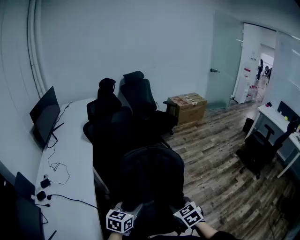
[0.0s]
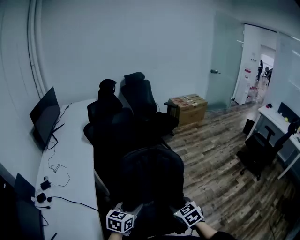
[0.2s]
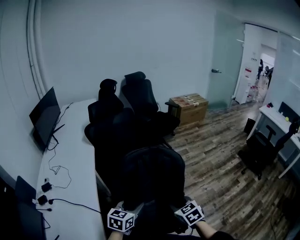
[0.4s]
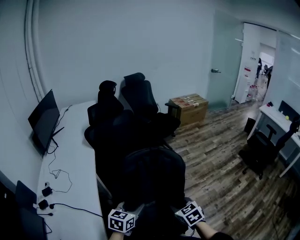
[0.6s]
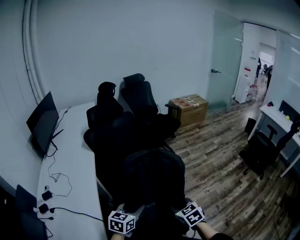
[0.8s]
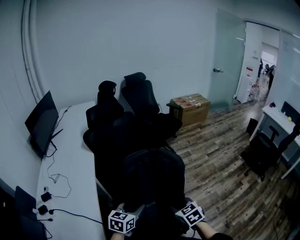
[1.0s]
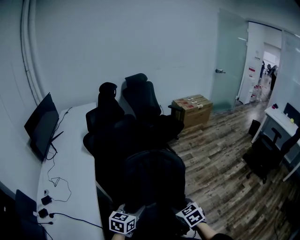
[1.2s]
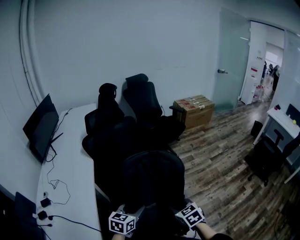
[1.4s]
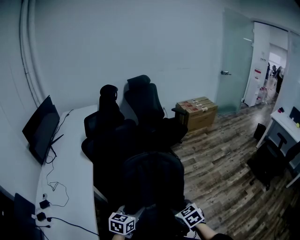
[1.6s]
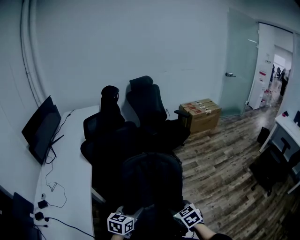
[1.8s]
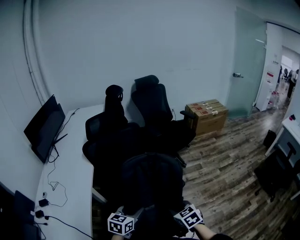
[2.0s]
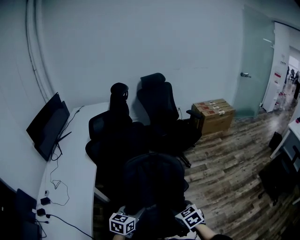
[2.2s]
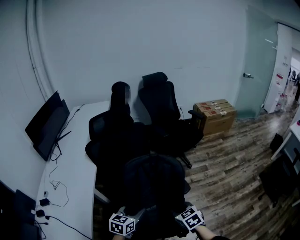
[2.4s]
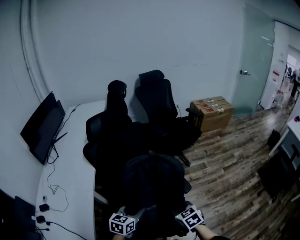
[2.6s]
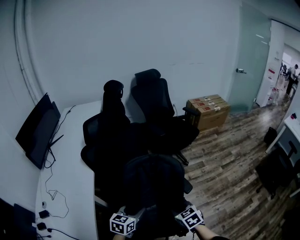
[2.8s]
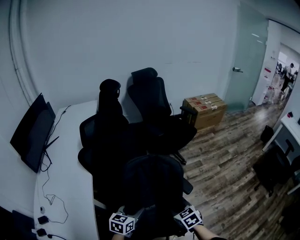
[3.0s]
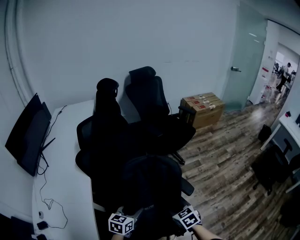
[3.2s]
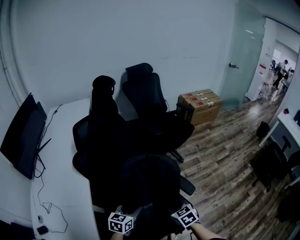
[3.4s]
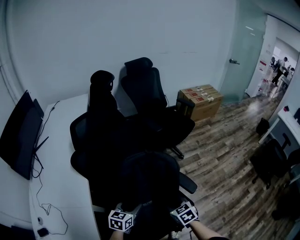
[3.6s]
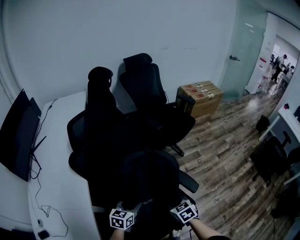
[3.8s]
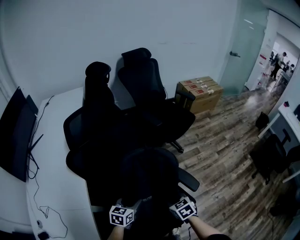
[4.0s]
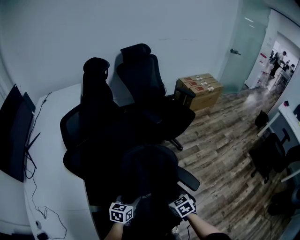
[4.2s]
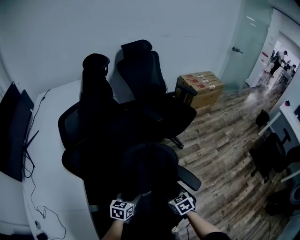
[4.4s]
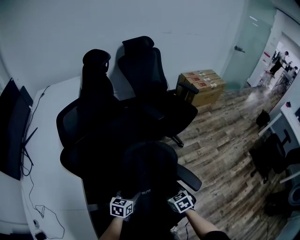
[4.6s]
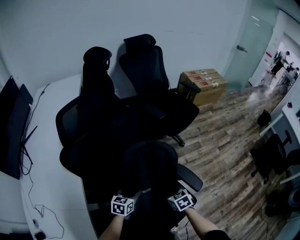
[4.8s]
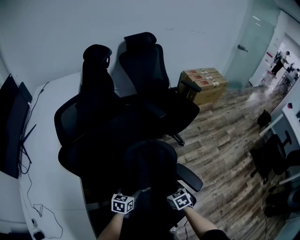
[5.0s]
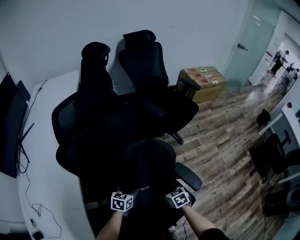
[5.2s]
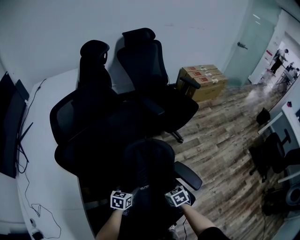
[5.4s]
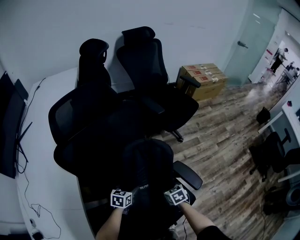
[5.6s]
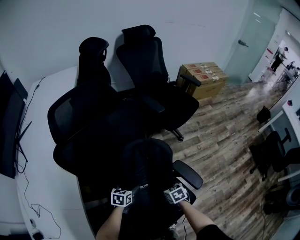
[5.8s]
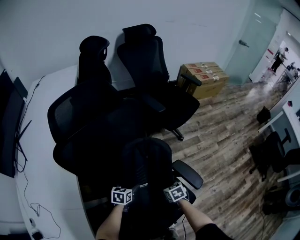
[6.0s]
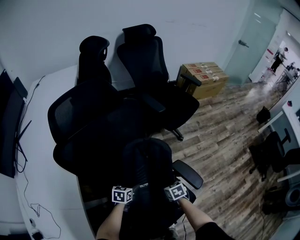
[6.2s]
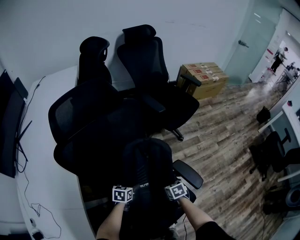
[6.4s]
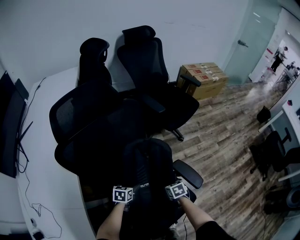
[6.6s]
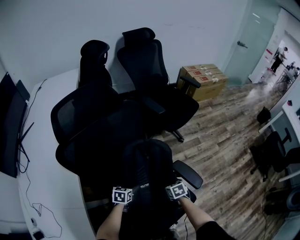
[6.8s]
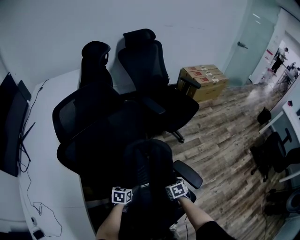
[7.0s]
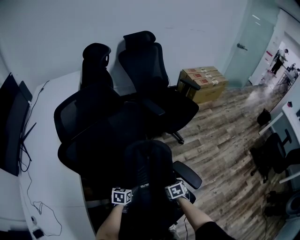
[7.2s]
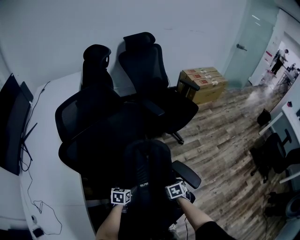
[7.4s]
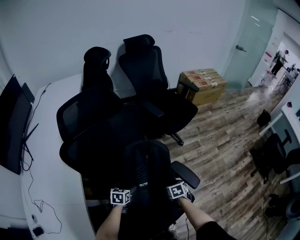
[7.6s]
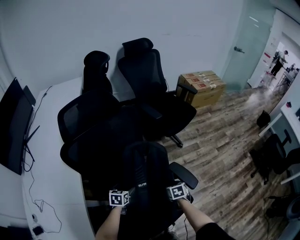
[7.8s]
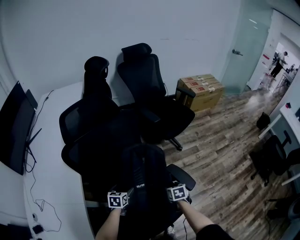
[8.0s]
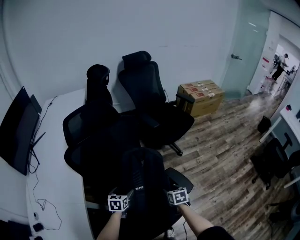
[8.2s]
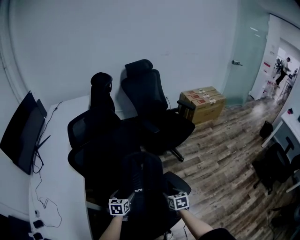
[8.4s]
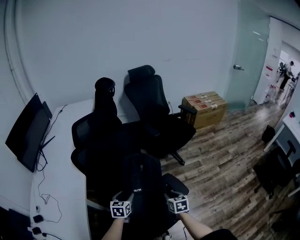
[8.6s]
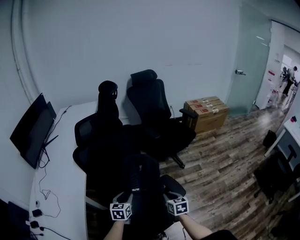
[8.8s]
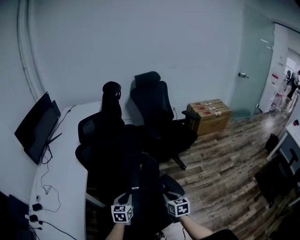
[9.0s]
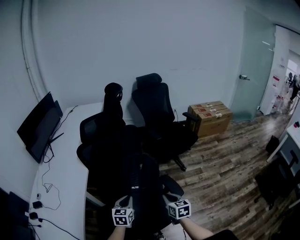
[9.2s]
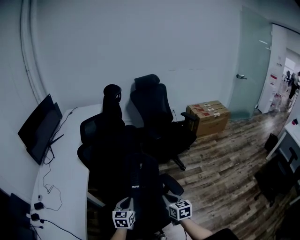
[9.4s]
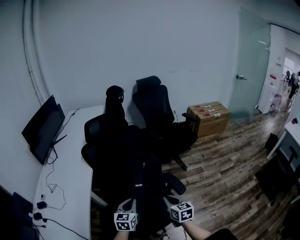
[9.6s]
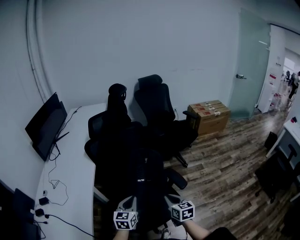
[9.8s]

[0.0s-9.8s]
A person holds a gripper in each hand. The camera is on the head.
0.0s to 1.4s: The grippers both shift forward by roughly 20 cm.
1.4s to 2.8s: Both grippers move forward, about 20 cm.
2.8s to 4.2s: The two grippers go roughly 25 cm forward, downward and to the left.
4.2s to 5.6s: The grippers both shift downward and forward by approximately 15 cm.
5.6s to 7.0s: The right gripper opens up.
7.0s to 8.4s: The right gripper is displaced upward, backward and to the right by about 20 cm, while the left gripper goes some 15 cm upward and backward.
8.4s to 9.8s: Both grippers move backward and upward, some 25 cm. The left gripper swivels some 20 degrees, and closes, while the right gripper rotates about 20 degrees, and closes up.

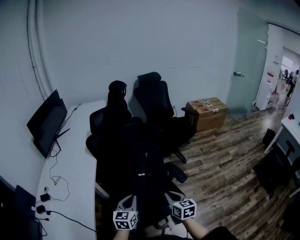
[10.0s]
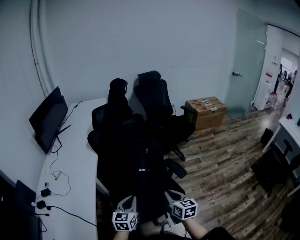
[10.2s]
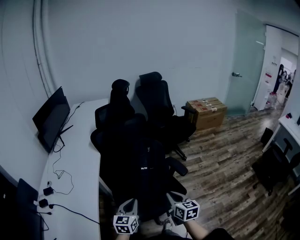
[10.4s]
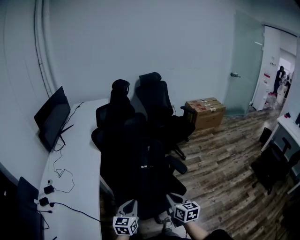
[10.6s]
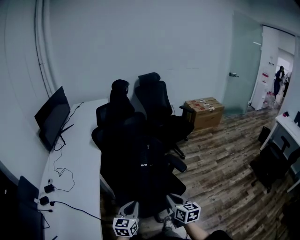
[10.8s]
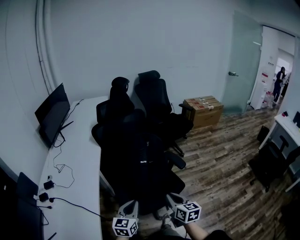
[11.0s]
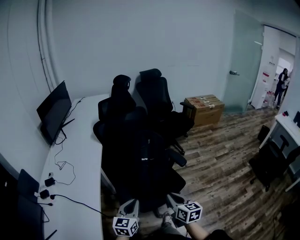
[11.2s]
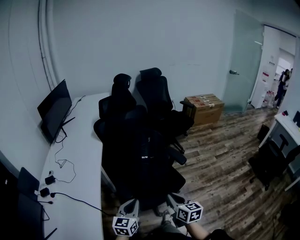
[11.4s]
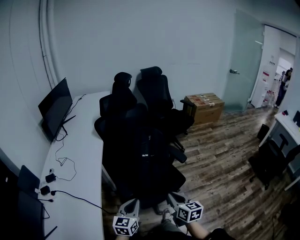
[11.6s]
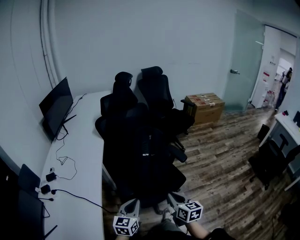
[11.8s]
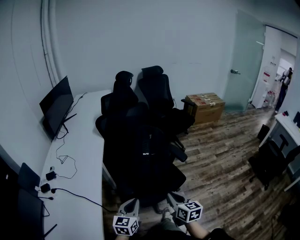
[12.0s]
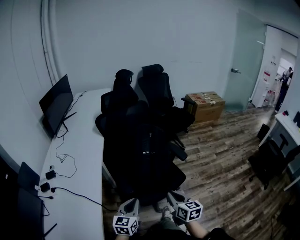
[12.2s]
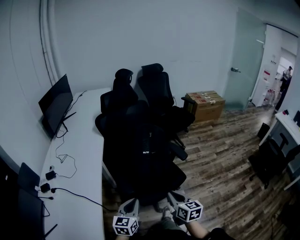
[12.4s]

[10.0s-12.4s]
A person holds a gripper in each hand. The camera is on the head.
10.0s to 11.2s: Both grippers travel together backward, some 20 cm.
11.2s to 12.4s: There are only small adjustments of the grippers.

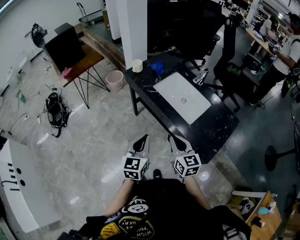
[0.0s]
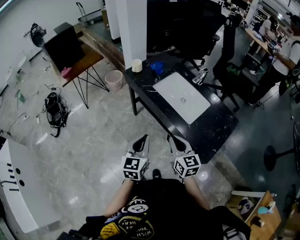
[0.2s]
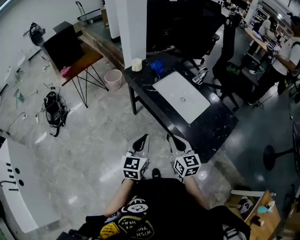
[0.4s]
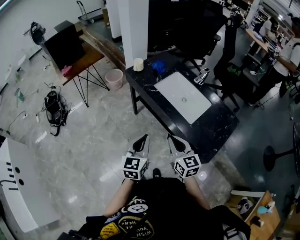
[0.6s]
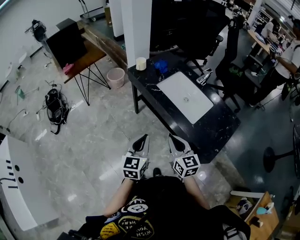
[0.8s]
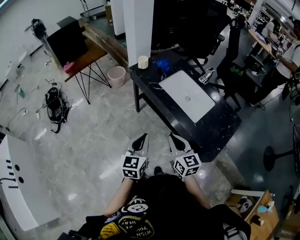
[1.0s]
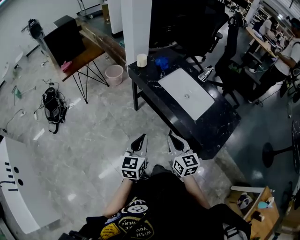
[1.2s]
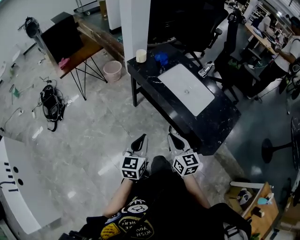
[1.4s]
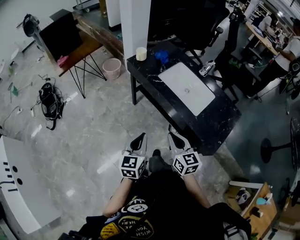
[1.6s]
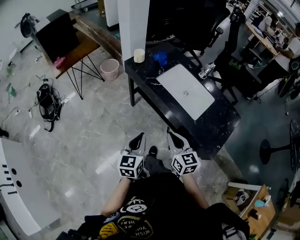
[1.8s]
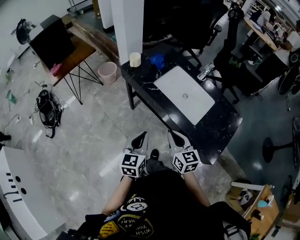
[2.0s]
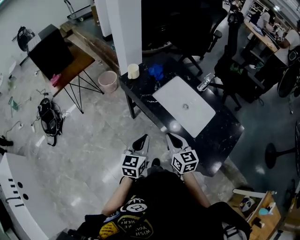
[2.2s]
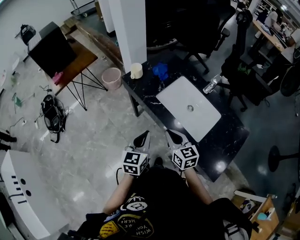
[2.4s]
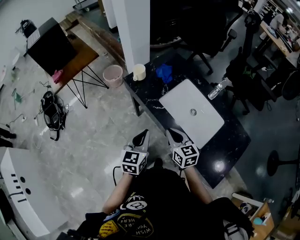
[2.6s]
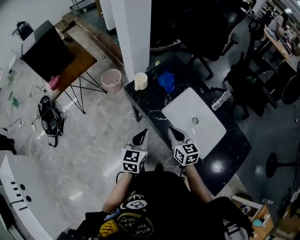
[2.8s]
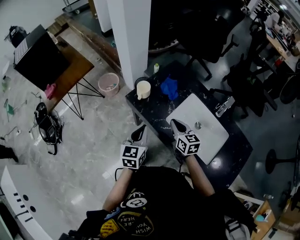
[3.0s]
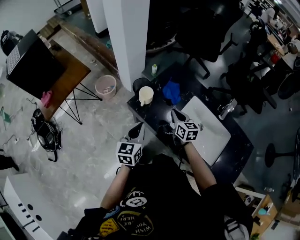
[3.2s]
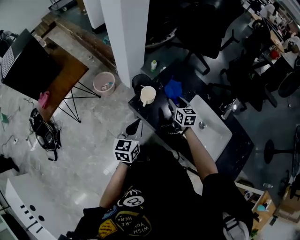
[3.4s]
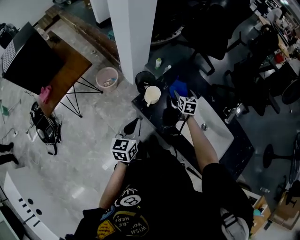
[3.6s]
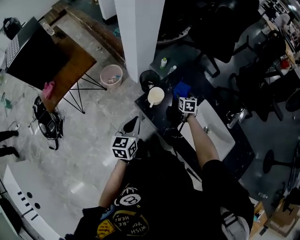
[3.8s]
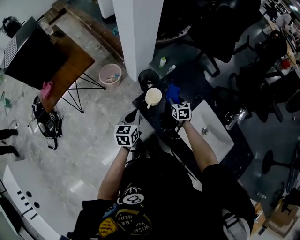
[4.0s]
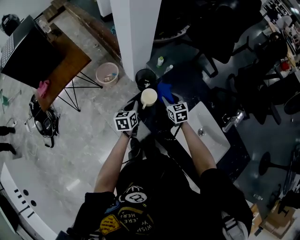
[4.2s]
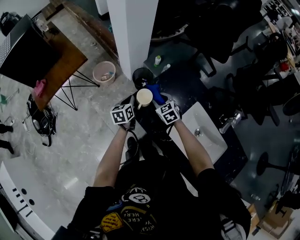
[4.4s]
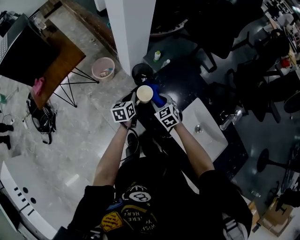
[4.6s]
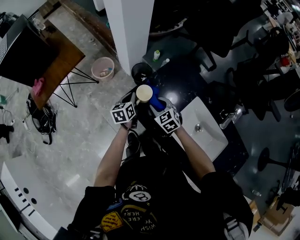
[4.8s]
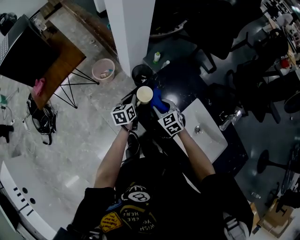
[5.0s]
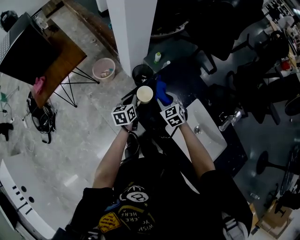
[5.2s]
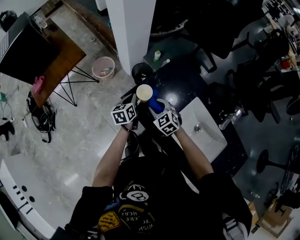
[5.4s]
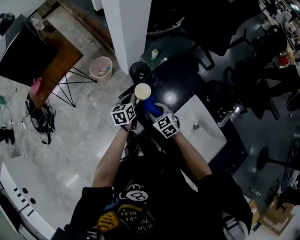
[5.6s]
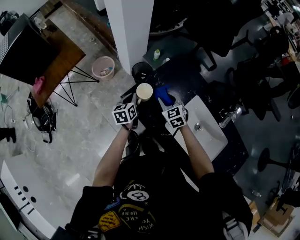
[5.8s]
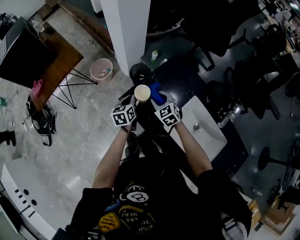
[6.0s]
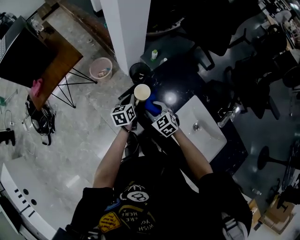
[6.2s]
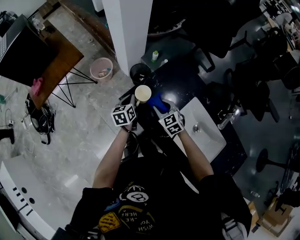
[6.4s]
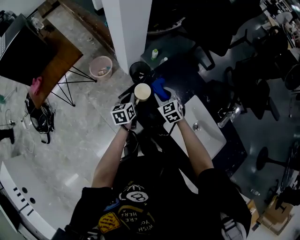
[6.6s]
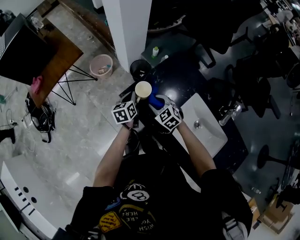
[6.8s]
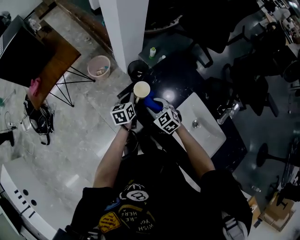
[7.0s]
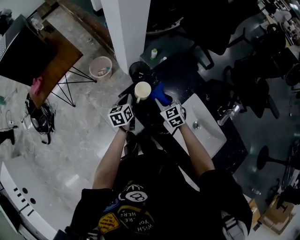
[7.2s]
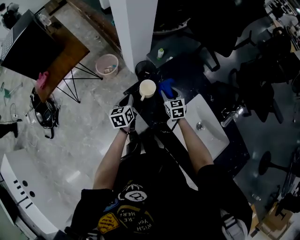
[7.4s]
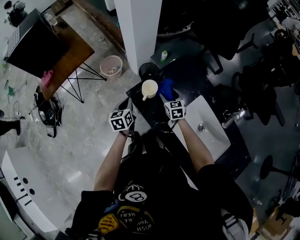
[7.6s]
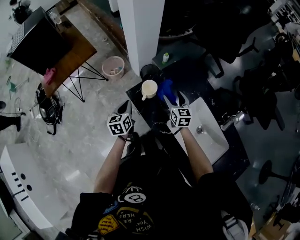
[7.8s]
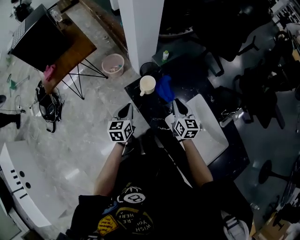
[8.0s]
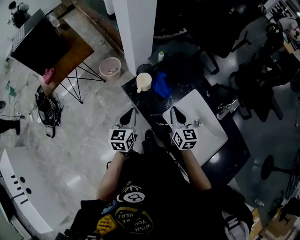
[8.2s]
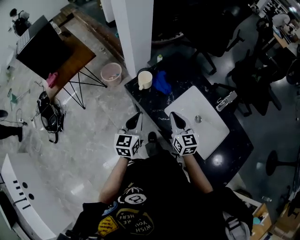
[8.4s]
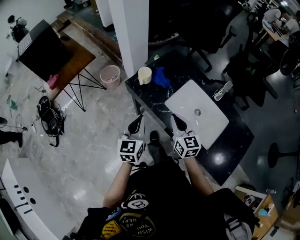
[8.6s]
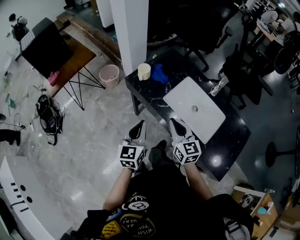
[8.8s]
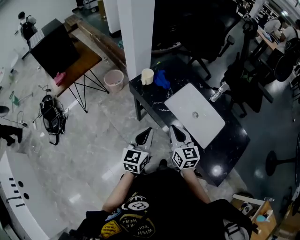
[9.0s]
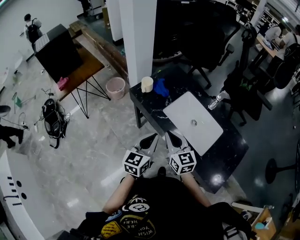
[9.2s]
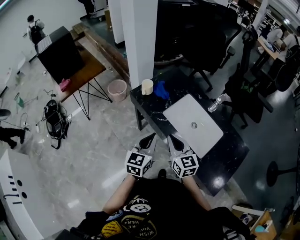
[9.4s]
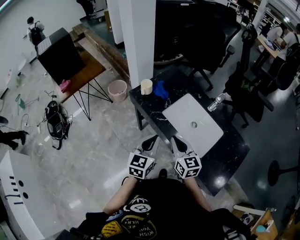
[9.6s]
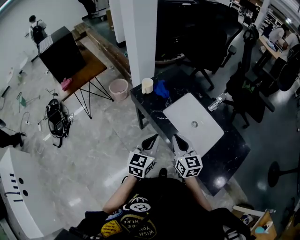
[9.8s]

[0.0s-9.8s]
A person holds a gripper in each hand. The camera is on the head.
0.0s to 1.4s: The two grippers go about 10 cm to the left.
1.4s to 2.8s: Both grippers travel together forward, roughly 35 cm.
2.8s to 4.2s: The right gripper moves forward, approximately 35 cm, and opens its fingers, while the left gripper moves forward, to the left and downward, about 35 cm, and rotates some 20 degrees.
4.2s to 5.6s: The right gripper swings forward and backward, about 10 cm each way, with 2 reversals, and changes its angle by some 20 degrees.
5.6s to 7.0s: The right gripper goes forward and backward, approximately 10 cm each way, reversing 3 times.
7.0s to 8.4s: The right gripper travels backward, upward and to the right by roughly 25 cm, swivels about 50 degrees, and closes, while the left gripper goes roughly 25 cm backward and upward, and turns by about 30 degrees.
8.4s to 9.8s: The left gripper is displaced backward, to the right and upward by roughly 20 cm; the right gripper moves backward and upward, approximately 20 cm.

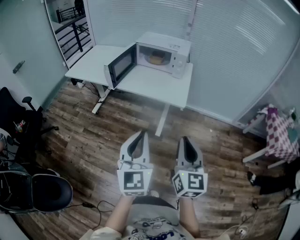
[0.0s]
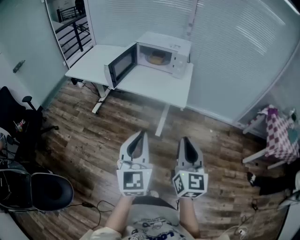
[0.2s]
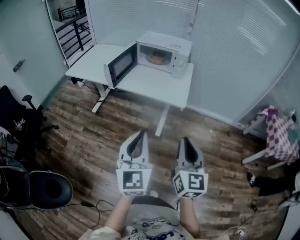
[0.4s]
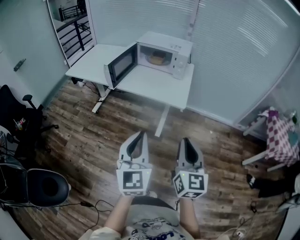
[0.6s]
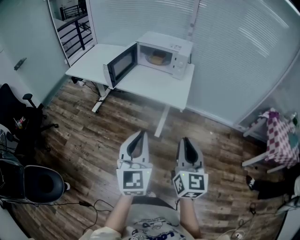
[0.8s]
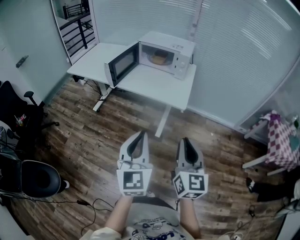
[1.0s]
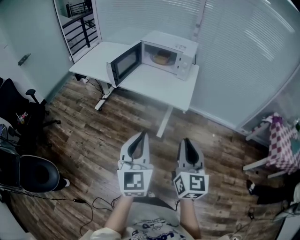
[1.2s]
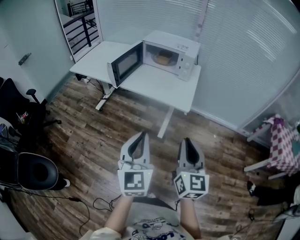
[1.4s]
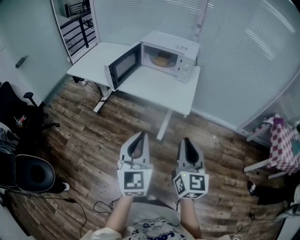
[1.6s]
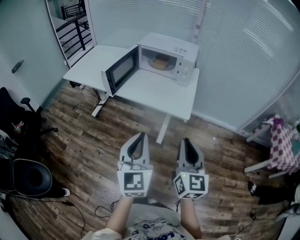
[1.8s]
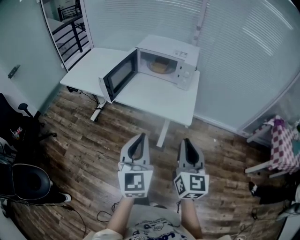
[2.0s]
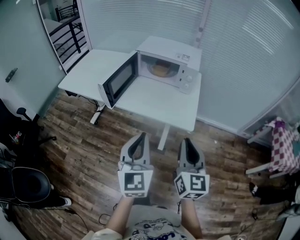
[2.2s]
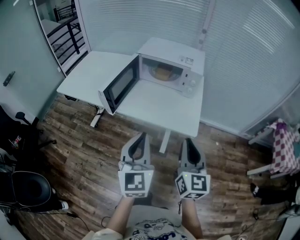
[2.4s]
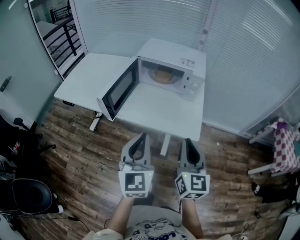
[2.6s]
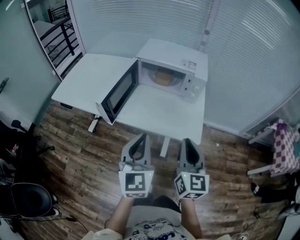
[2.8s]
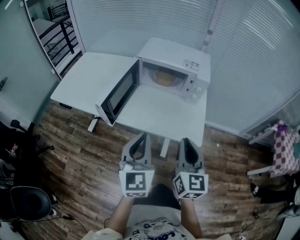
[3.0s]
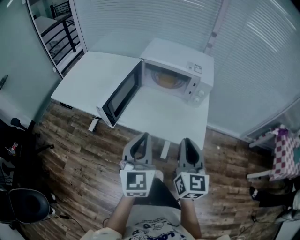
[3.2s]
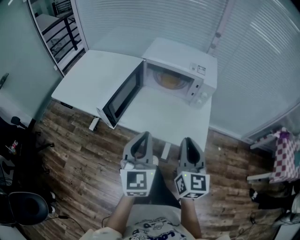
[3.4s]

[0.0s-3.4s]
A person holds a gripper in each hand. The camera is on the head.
0.0s to 1.6s: The two grippers go approximately 5 cm forward.
1.6s to 3.4s: Both grippers move forward, approximately 30 cm.
